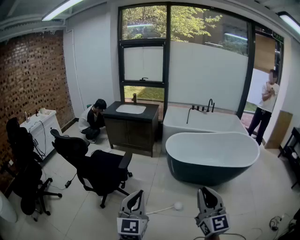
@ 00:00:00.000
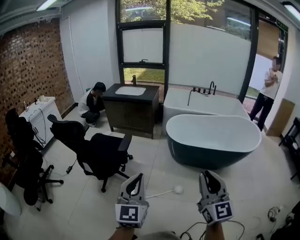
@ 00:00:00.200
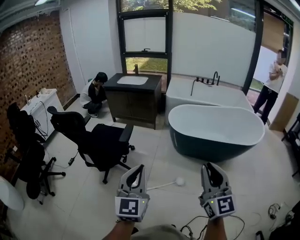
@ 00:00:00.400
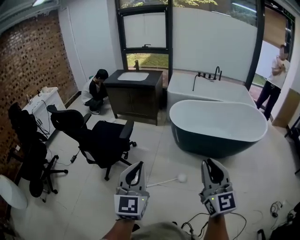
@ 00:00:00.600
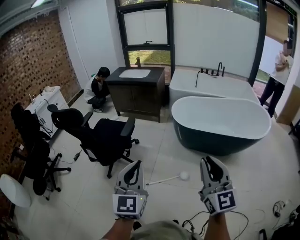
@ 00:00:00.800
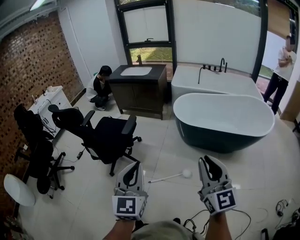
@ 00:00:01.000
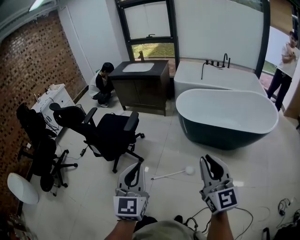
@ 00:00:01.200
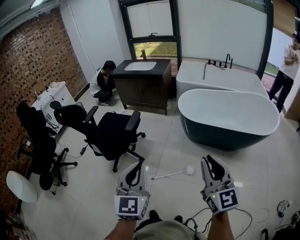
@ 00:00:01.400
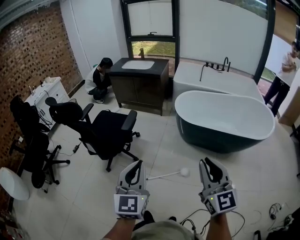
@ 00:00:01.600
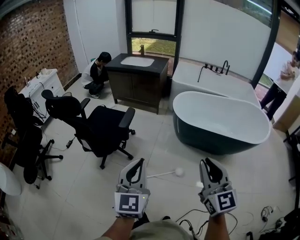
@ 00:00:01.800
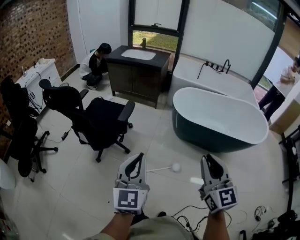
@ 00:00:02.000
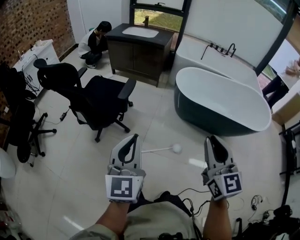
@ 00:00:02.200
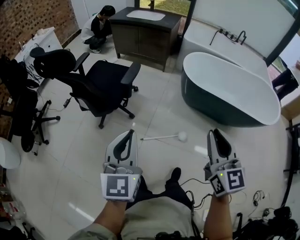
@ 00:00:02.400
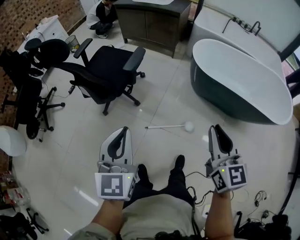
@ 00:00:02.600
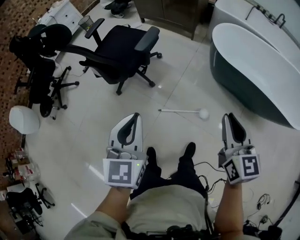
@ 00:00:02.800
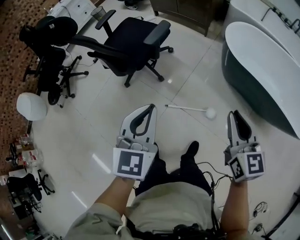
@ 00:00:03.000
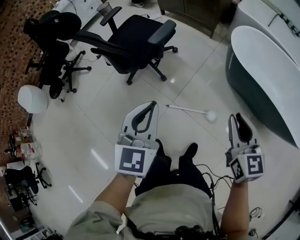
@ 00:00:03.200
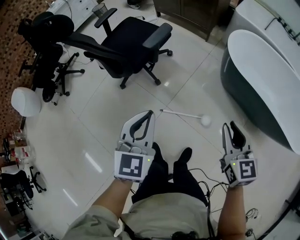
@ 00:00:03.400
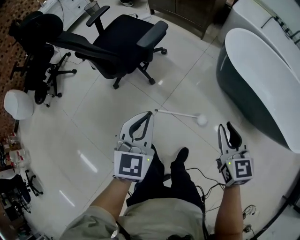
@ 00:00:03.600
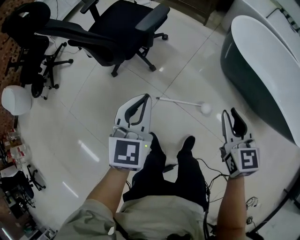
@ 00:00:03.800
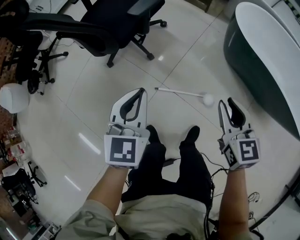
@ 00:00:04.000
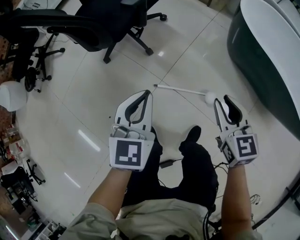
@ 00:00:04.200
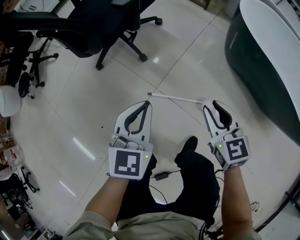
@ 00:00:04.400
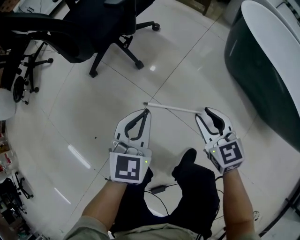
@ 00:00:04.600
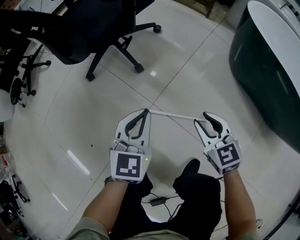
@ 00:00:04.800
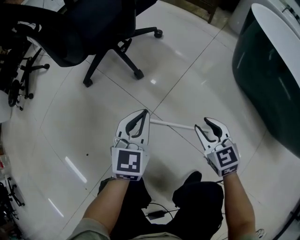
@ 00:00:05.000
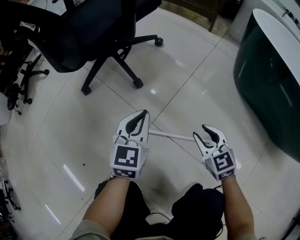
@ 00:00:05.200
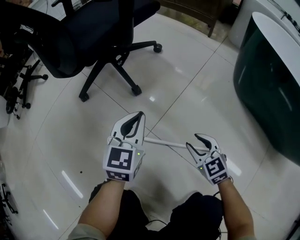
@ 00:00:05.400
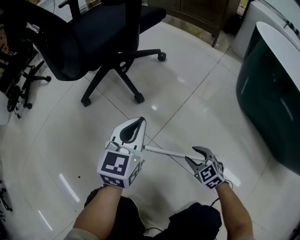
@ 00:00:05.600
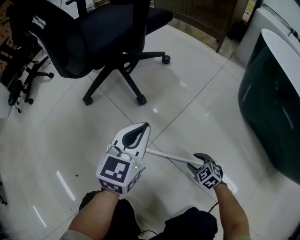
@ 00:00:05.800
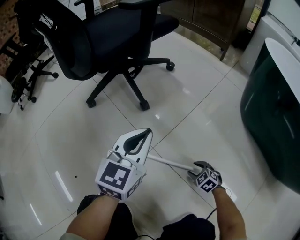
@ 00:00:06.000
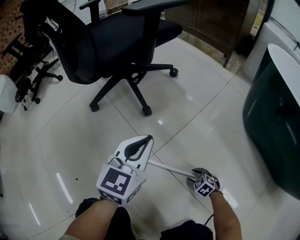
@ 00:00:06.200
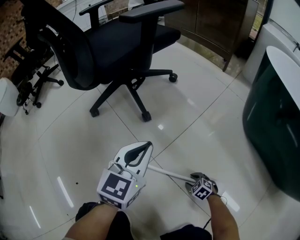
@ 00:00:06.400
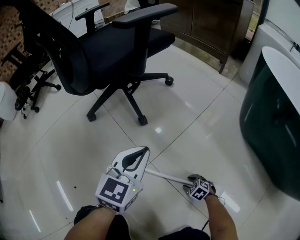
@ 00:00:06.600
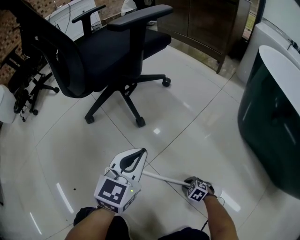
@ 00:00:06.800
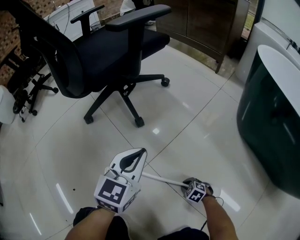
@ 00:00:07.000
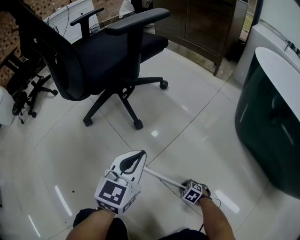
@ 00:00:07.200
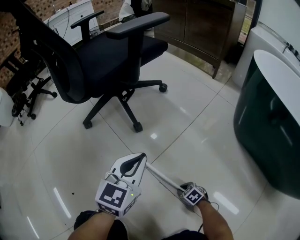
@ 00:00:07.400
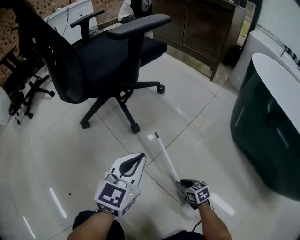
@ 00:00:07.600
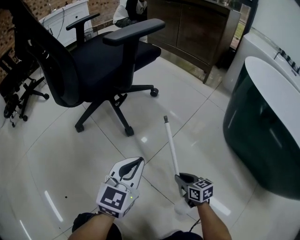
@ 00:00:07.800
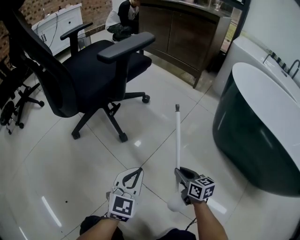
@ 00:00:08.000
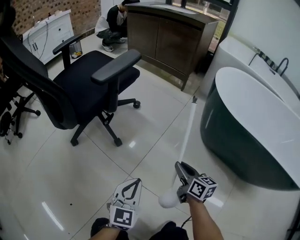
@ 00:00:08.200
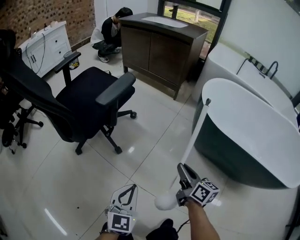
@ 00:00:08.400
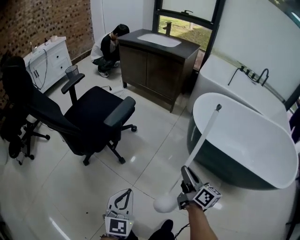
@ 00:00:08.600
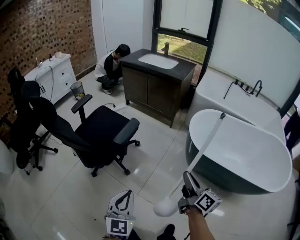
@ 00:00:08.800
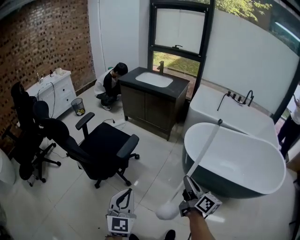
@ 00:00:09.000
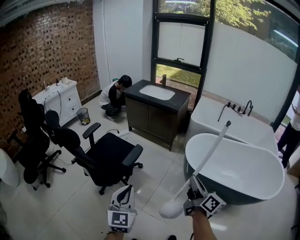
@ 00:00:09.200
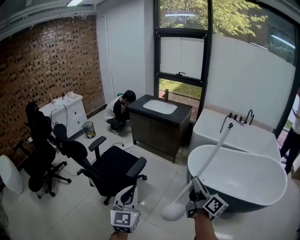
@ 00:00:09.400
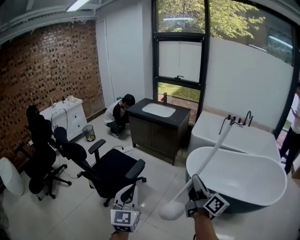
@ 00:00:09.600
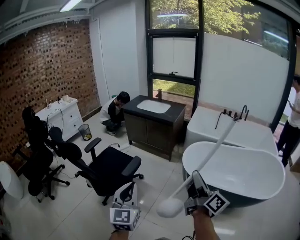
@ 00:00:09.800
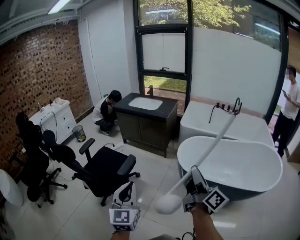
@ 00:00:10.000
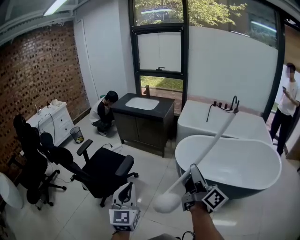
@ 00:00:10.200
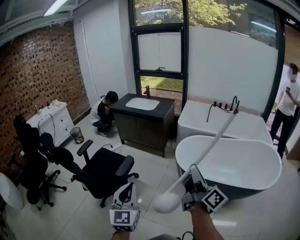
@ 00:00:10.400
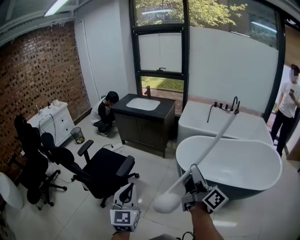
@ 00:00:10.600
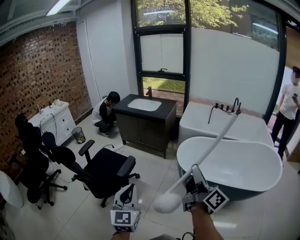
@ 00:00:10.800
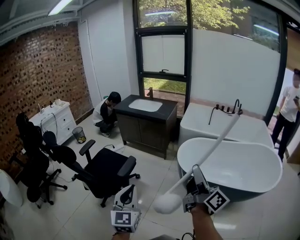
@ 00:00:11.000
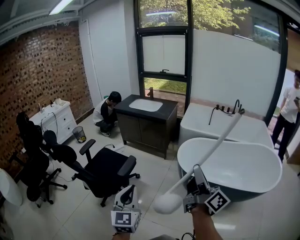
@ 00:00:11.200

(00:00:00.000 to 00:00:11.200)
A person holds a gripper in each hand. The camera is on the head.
00:00:00.000 - 00:00:01.600: The right gripper moves forward and downward, approximately 15 cm; the left gripper heads forward and to the right, covering about 10 cm.
00:00:01.600 - 00:00:03.200: The two grippers go roughly 35 cm downward and forward. The left gripper rotates some 20 degrees; the right gripper turns by approximately 30 degrees.
00:00:03.200 - 00:00:04.800: Both grippers travel together downward, roughly 60 cm. The right gripper rotates roughly 30 degrees.
00:00:04.800 - 00:00:06.400: The left gripper moves downward and forward, some 15 cm; the right gripper travels downward by roughly 50 cm, and points its fingers roughly 40 degrees further downward.
00:00:06.400 - 00:00:08.000: The right gripper shifts roughly 30 cm upward, angles its fingers upward, by about 40 degrees, and closes its fingers. The left gripper changes place by roughly 5 cm.
00:00:08.000 - 00:00:09.600: The two grippers go approximately 1 m upward. The right gripper tips its fingers upward by approximately 50 degrees.
00:00:09.600 - 00:00:11.200: The left gripper moves roughly 5 cm. The right gripper travels upward by about 5 cm.

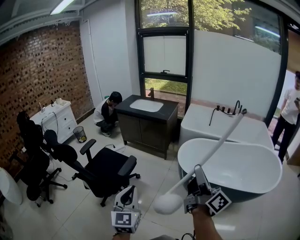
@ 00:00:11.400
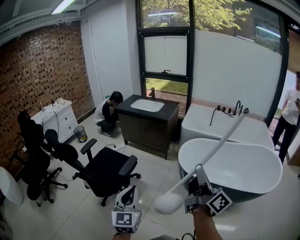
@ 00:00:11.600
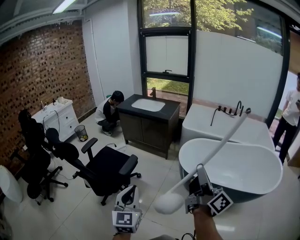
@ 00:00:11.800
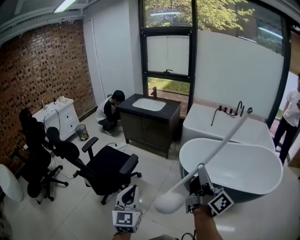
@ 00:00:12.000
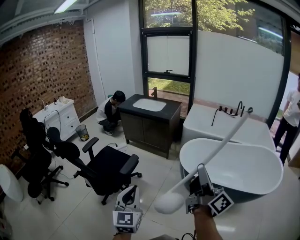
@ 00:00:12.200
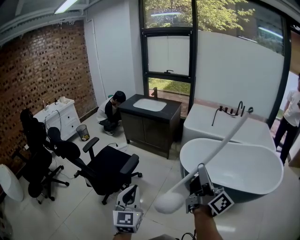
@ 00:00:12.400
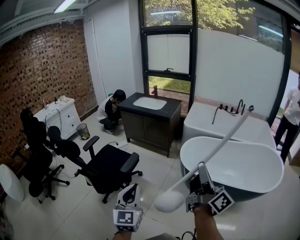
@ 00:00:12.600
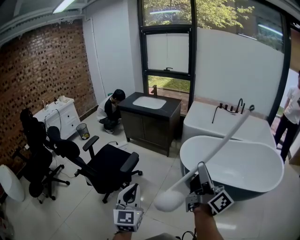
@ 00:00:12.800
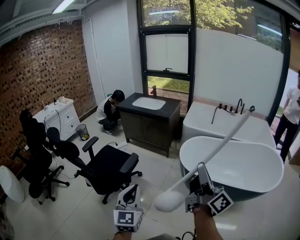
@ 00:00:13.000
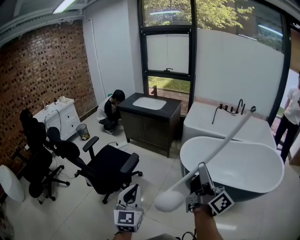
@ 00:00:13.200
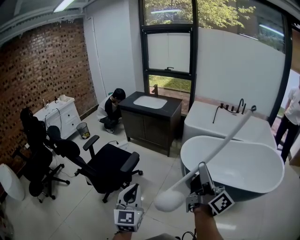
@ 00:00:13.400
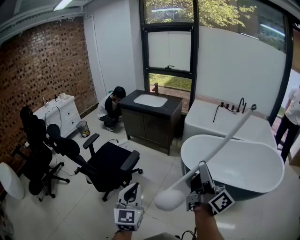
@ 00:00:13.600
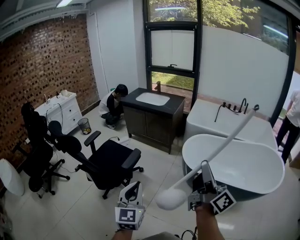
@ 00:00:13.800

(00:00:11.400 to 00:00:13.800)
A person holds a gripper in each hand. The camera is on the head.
00:00:11.400 - 00:00:13.800: There are only small adjustments of the grippers.

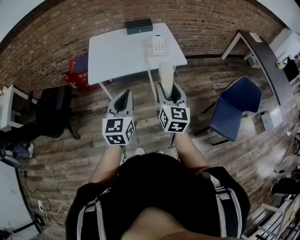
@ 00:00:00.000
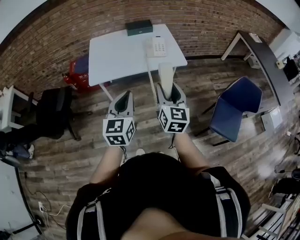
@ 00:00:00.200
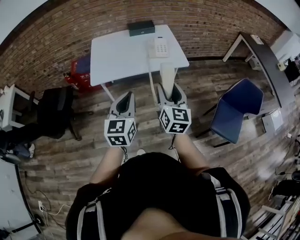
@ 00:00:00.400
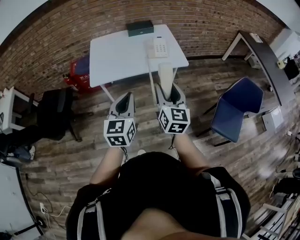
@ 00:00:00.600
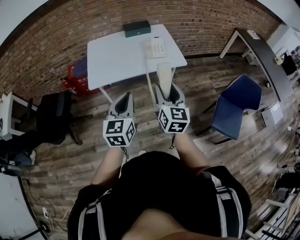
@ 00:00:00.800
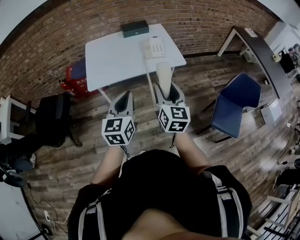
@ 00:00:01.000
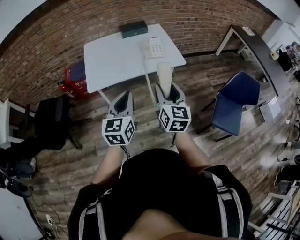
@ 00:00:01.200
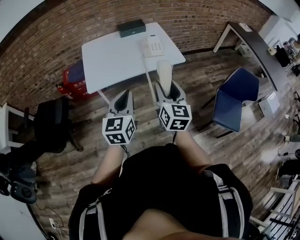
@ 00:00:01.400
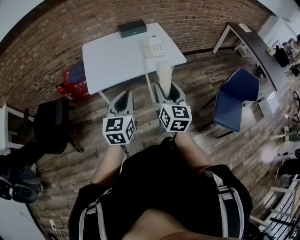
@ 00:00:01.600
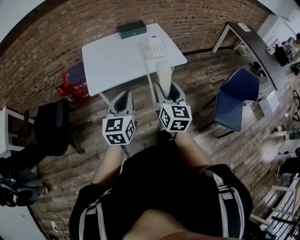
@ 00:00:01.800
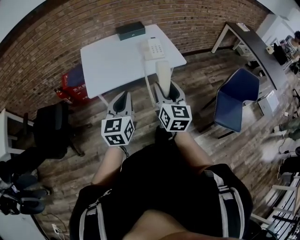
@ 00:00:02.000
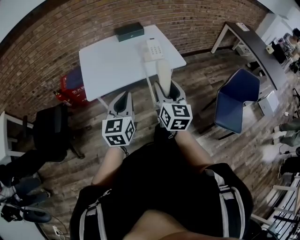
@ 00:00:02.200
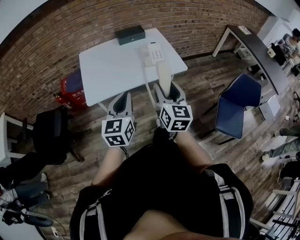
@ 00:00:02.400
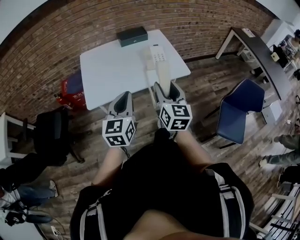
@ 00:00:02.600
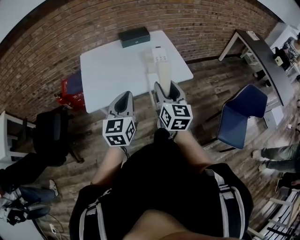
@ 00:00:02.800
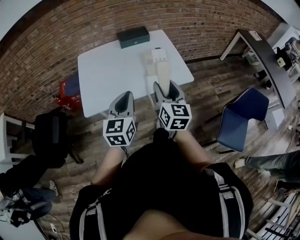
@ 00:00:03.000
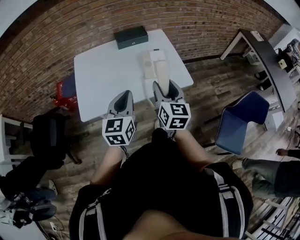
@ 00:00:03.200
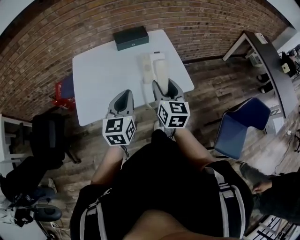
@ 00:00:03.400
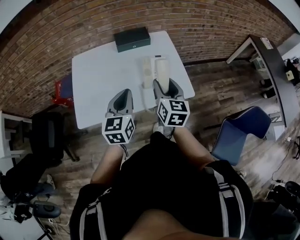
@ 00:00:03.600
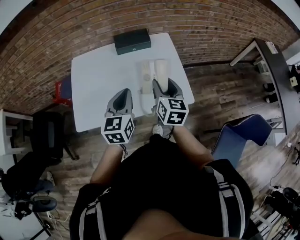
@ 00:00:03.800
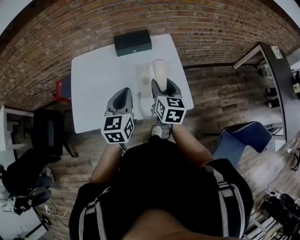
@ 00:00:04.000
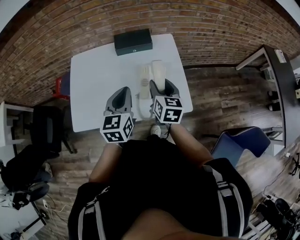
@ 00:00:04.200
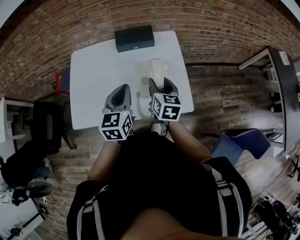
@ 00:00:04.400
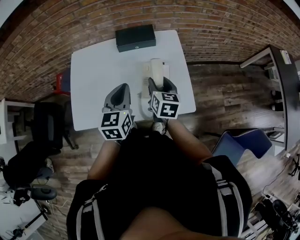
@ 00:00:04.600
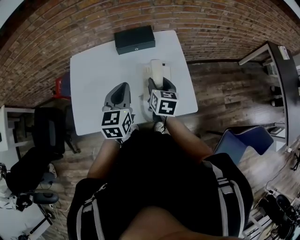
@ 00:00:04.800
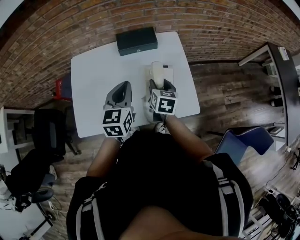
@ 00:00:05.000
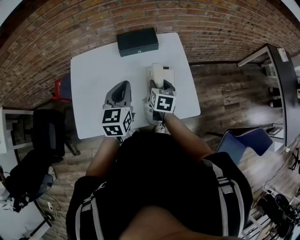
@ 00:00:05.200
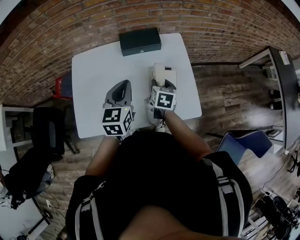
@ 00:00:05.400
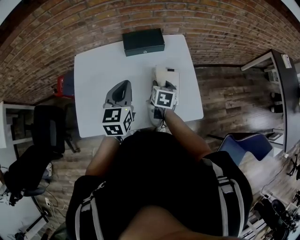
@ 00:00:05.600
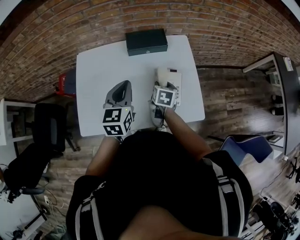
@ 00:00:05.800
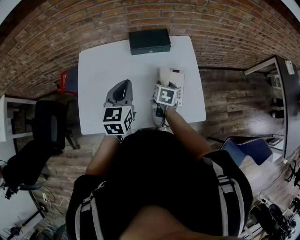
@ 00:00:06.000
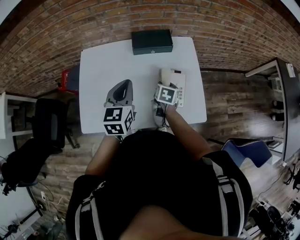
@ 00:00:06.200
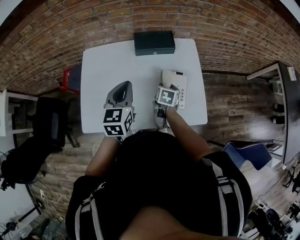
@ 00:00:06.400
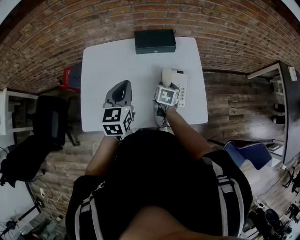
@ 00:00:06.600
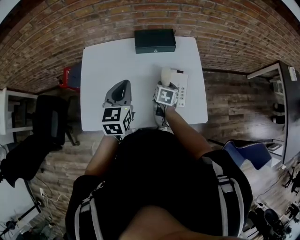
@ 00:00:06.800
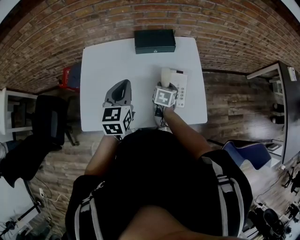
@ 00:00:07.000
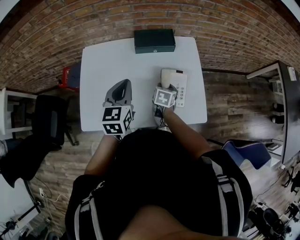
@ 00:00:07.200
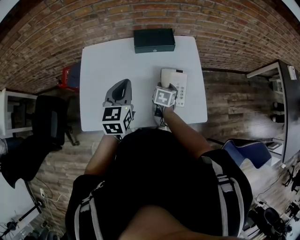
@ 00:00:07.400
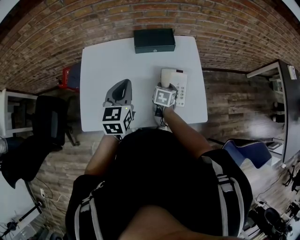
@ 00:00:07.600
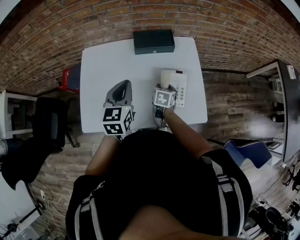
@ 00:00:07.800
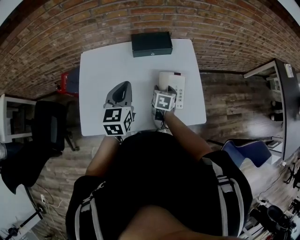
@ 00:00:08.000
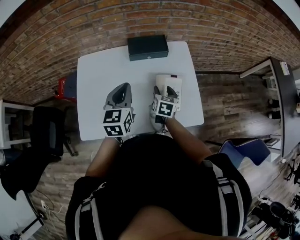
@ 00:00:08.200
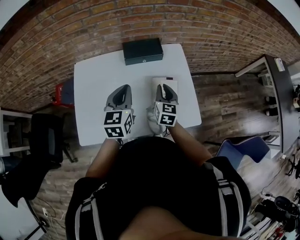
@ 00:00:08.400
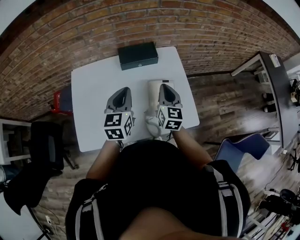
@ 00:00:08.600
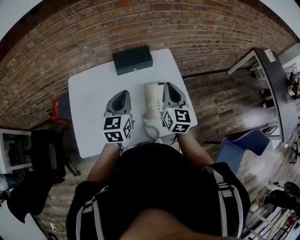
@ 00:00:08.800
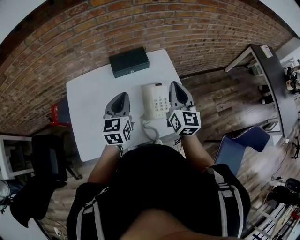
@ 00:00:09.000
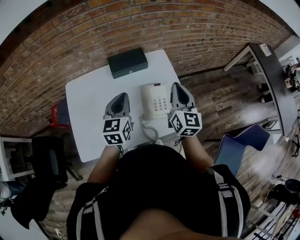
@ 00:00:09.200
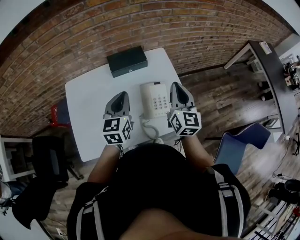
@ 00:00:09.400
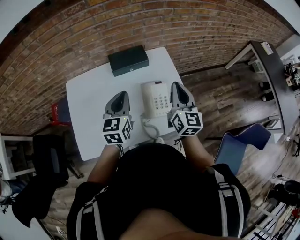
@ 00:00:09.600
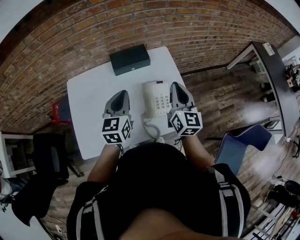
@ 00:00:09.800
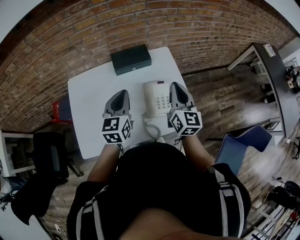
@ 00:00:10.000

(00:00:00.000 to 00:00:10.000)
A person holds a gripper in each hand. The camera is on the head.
00:00:00.000 - 00:00:01.400: The two grippers go roughly 5 cm to the left.
00:00:01.400 - 00:00:02.800: The two grippers go some 15 cm forward.
00:00:02.800 - 00:00:04.200: The grippers both shift forward by roughly 30 cm. The right gripper turns by about 20 degrees.
00:00:04.200 - 00:00:05.800: The left gripper travels forward and to the left by about 10 cm. Meanwhile the right gripper travels downward and forward by roughly 15 cm, and turns by some 30 degrees.
00:00:05.800 - 00:00:07.200: The right gripper is displaced downward by some 5 cm.
00:00:07.200 - 00:00:08.600: The right gripper shifts about 20 cm upward, angles its fingers upward, by about 40 degrees, and closes.
00:00:08.600 - 00:00:10.000: The right gripper moves upward and to the right, about 10 cm.
